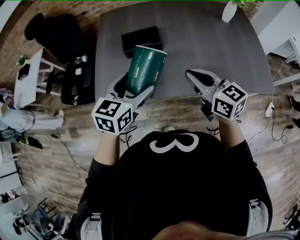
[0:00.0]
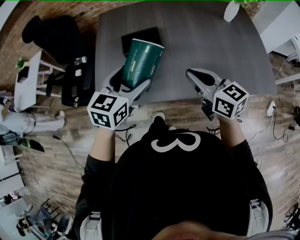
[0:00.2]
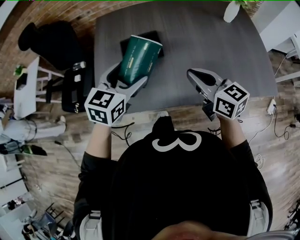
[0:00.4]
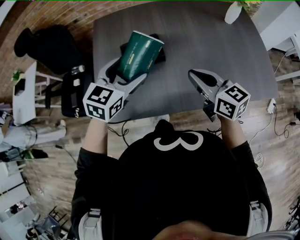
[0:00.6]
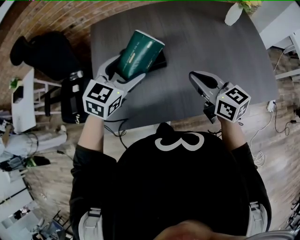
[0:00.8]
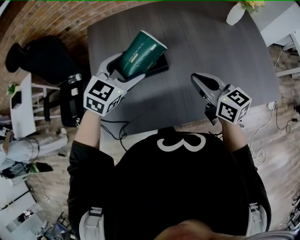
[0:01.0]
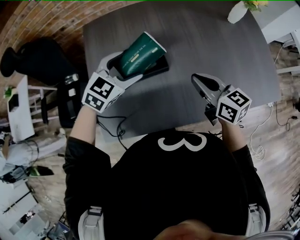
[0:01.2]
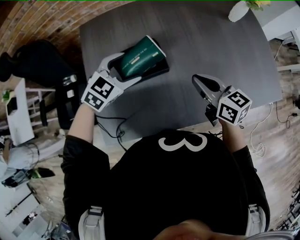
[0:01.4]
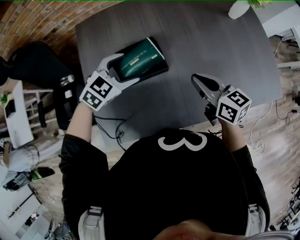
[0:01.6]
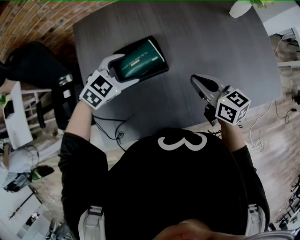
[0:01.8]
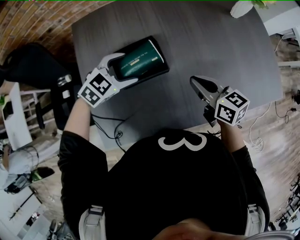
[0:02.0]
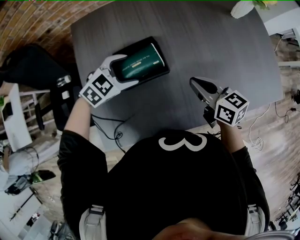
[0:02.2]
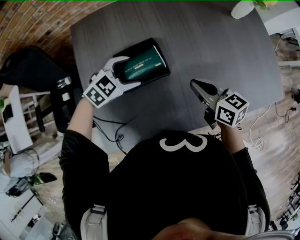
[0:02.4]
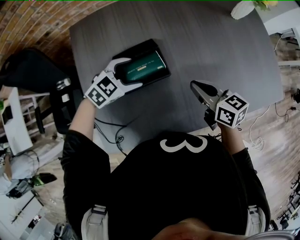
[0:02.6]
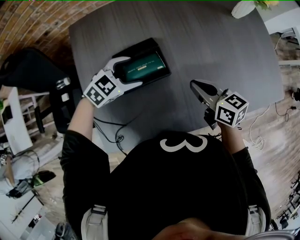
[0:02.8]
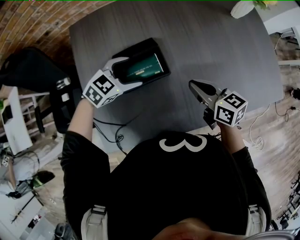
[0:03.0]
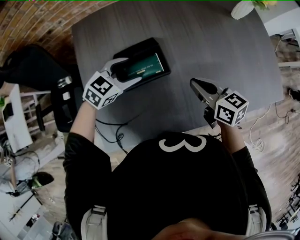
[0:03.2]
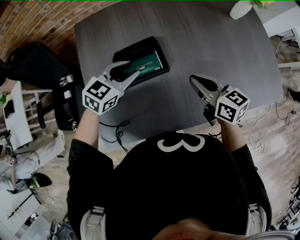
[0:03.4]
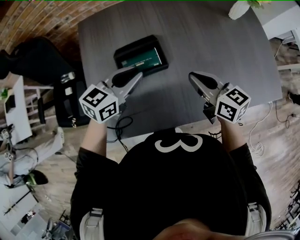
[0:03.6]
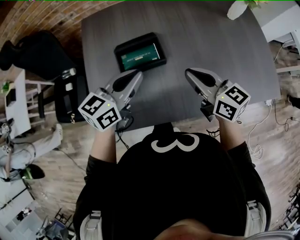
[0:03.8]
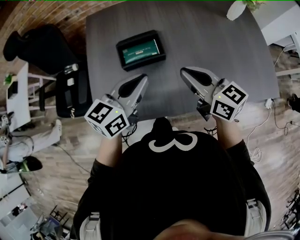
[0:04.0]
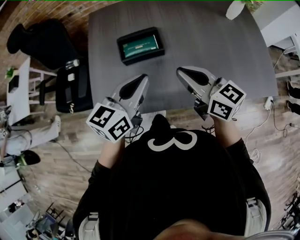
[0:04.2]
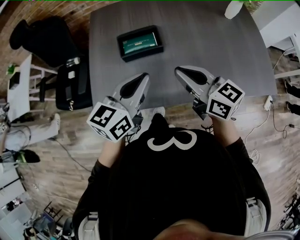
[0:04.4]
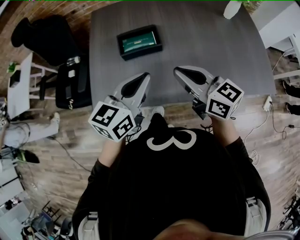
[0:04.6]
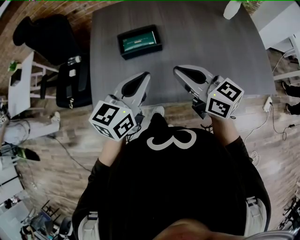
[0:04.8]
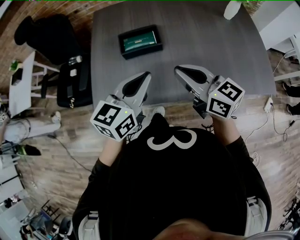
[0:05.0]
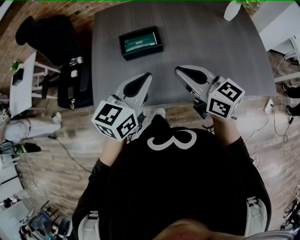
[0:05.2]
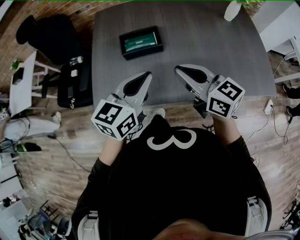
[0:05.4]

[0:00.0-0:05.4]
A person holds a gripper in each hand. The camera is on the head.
0:00.0 to 0:01.4: The left gripper is displaced forward by about 25 cm, and swivels approximately 40 degrees. The right gripper is displaced forward by roughly 15 cm.
0:01.4 to 0:02.8: The two grippers go some 5 cm downward.
0:02.8 to 0:04.0: The right gripper travels upward and backward by approximately 15 cm. Meanwhile the left gripper is displaced upward and backward by some 25 cm, angles its fingers upward, by some 30 degrees, and closes up.
0:04.0 to 0:05.4: The grippers both shift backward by some 10 cm.

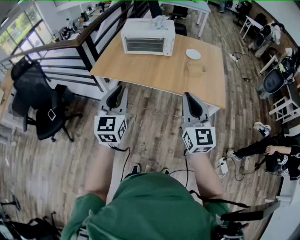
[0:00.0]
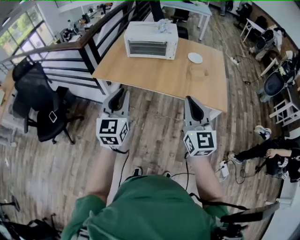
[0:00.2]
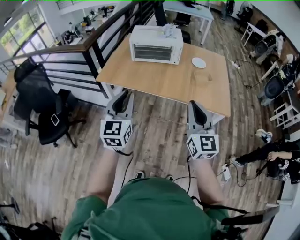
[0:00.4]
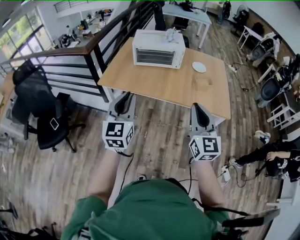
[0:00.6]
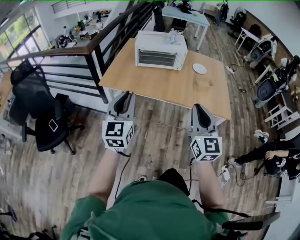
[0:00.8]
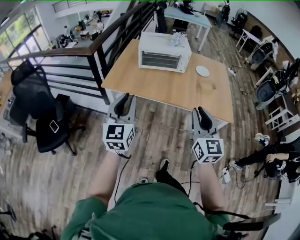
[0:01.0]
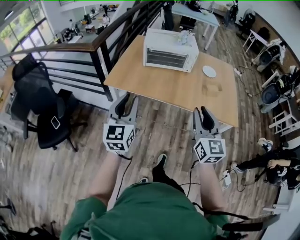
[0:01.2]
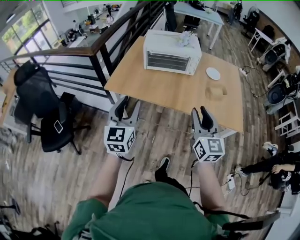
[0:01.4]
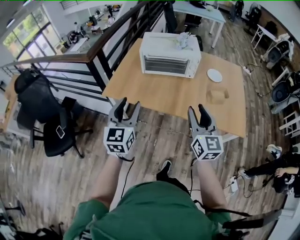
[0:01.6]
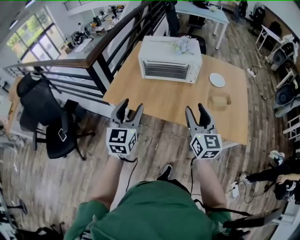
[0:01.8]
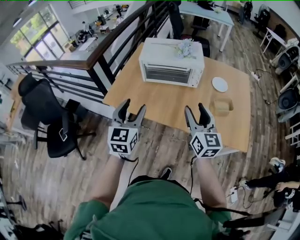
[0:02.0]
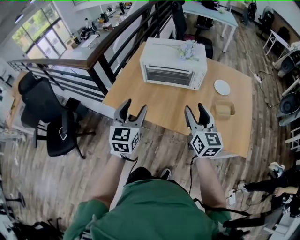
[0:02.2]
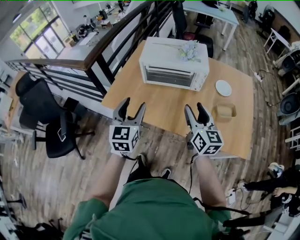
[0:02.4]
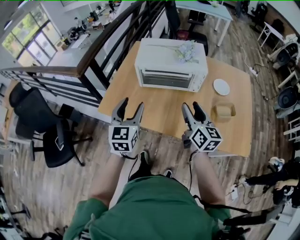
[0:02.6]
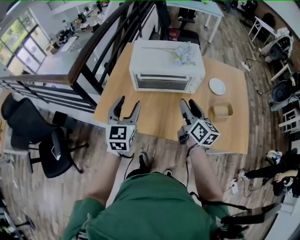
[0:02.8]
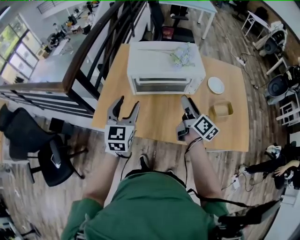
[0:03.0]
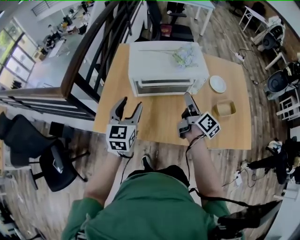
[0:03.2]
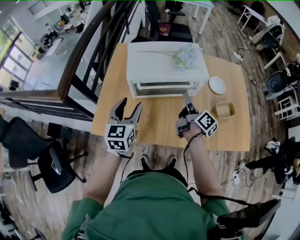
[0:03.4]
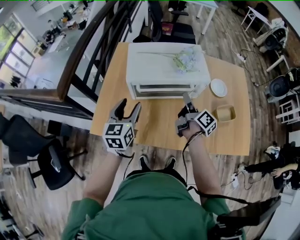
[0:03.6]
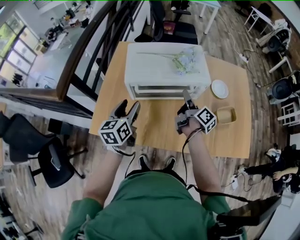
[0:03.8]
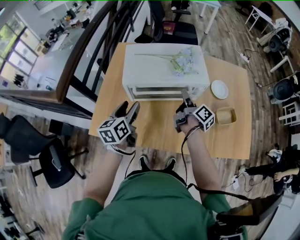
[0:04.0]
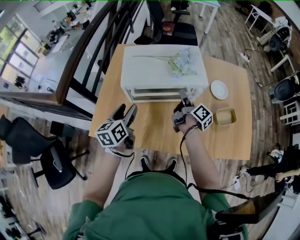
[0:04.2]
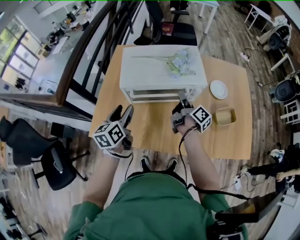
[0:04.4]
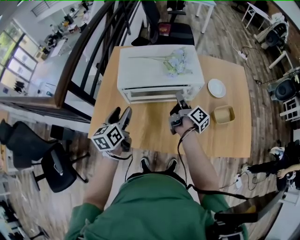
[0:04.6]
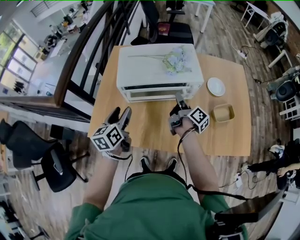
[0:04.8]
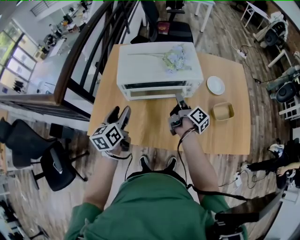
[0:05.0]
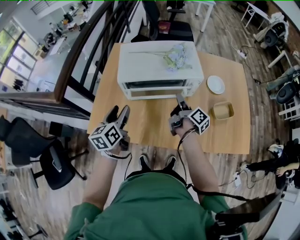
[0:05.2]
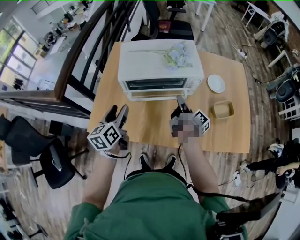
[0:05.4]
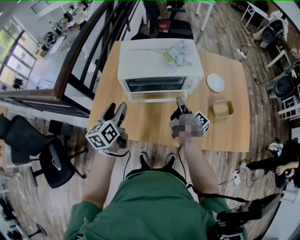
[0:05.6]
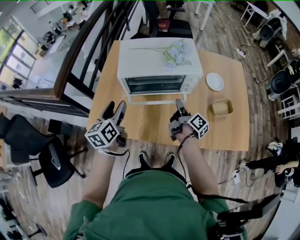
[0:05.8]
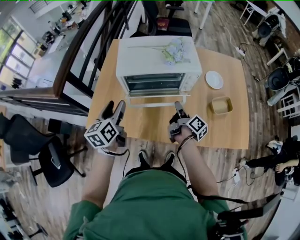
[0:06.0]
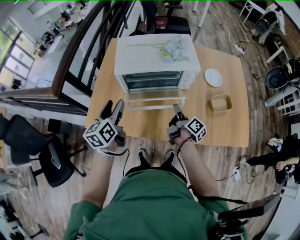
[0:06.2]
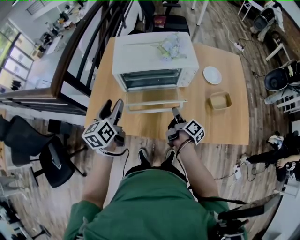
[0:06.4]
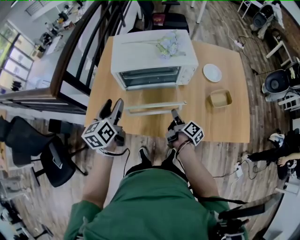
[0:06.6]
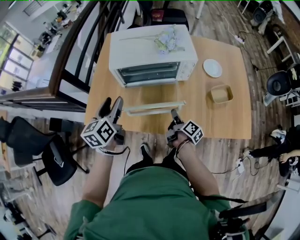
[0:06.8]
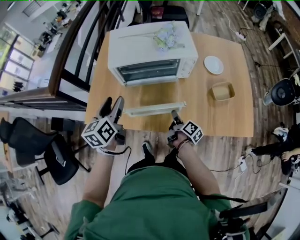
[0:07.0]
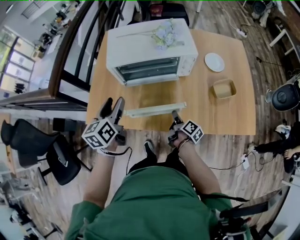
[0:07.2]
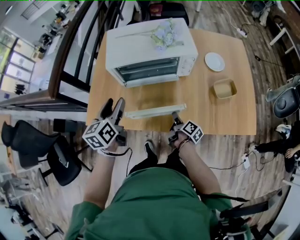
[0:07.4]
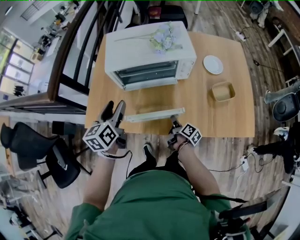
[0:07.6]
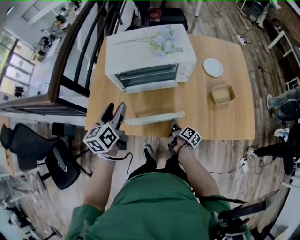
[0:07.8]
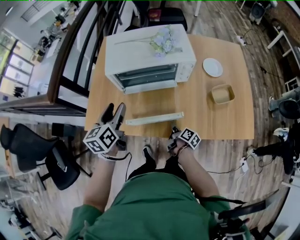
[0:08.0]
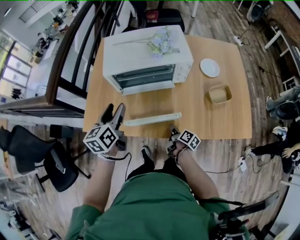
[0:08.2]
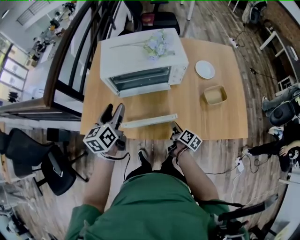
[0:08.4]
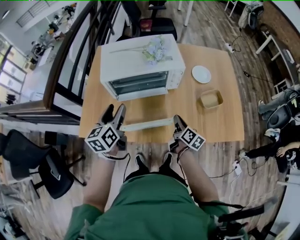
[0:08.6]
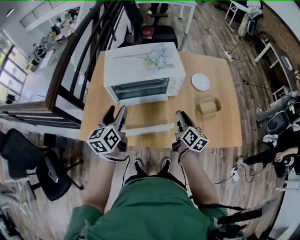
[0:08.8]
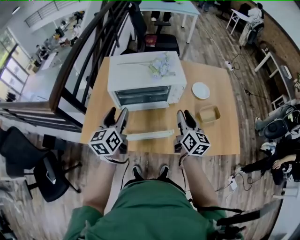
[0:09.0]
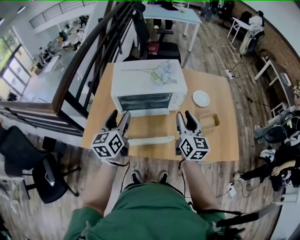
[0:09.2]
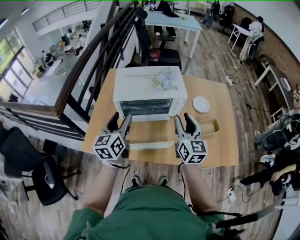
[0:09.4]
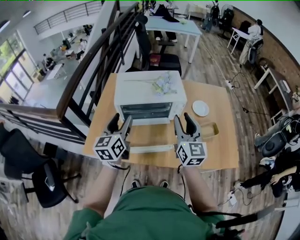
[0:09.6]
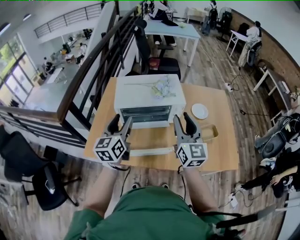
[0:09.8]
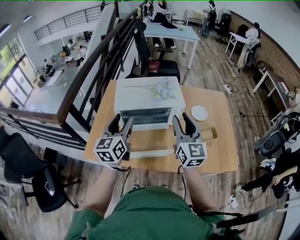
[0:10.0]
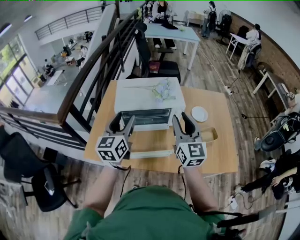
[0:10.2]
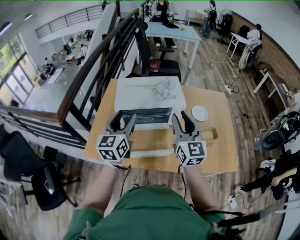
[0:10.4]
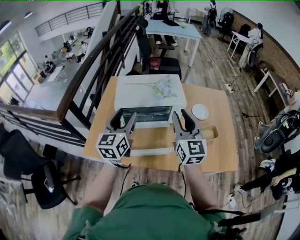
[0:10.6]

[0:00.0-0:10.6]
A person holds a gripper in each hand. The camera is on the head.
0:00.0 to 0:01.6: The grippers both shift forward and to the left by about 20 cm. The left gripper opens up, while the right gripper opens.
0:01.6 to 0:03.0: Both grippers move forward, approximately 30 cm. The right gripper rolls clockwise, seen from behind, by about 50 degrees.
0:03.0 to 0:04.6: The two grippers go roughly 10 cm forward and downward. The left gripper swivels roughly 40 degrees. Meanwhile the right gripper rotates about 30 degrees, and closes.
0:04.6 to 0:06.0: The right gripper moves backward, about 10 cm.
0:06.0 to 0:07.6: The right gripper moves downward and backward, some 20 cm.
0:07.6 to 0:09.0: The right gripper is displaced upward by approximately 25 cm, and rotates around the line of its fingers by some 50 degrees, counterclockwise from behind. Meanwhile the left gripper shifts about 5 cm upward.
0:09.0 to 0:10.6: The left gripper goes approximately 10 cm upward. The right gripper goes roughly 15 cm upward, and changes its angle by about 30 degrees.

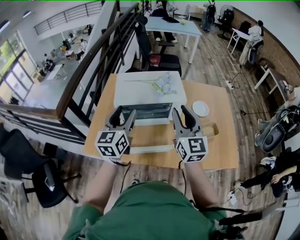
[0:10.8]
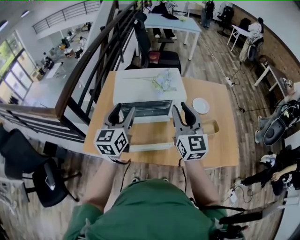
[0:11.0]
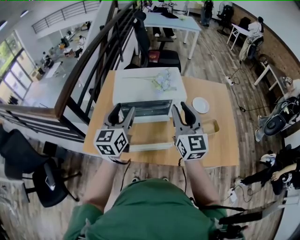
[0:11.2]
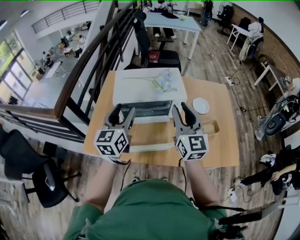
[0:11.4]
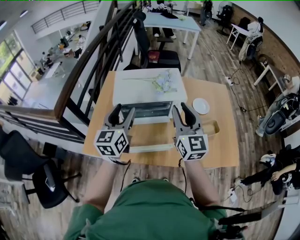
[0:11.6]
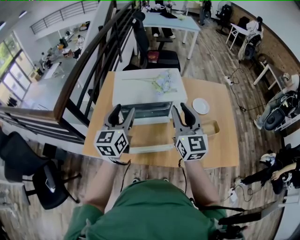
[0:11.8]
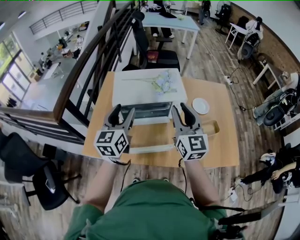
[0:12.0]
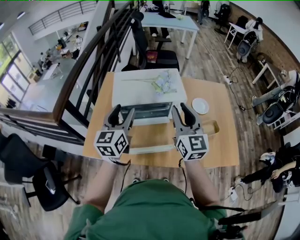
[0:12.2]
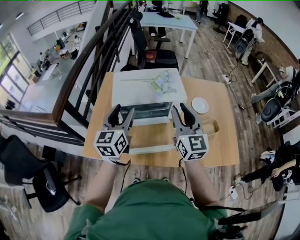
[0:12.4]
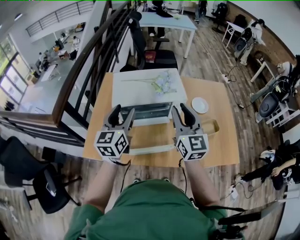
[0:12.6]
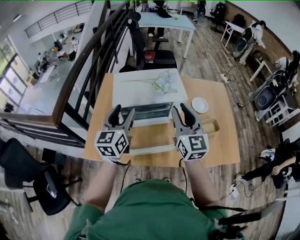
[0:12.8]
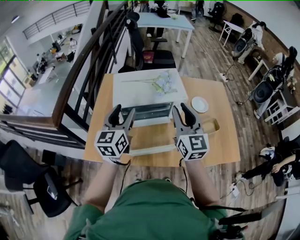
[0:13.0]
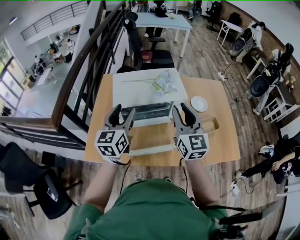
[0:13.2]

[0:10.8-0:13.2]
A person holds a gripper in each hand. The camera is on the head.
0:10.8 to 0:13.2: There are only small adjustments of the grippers.

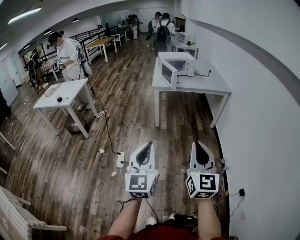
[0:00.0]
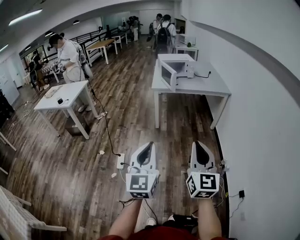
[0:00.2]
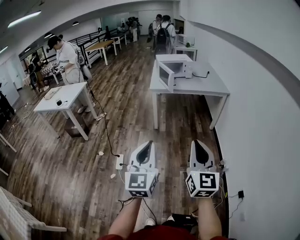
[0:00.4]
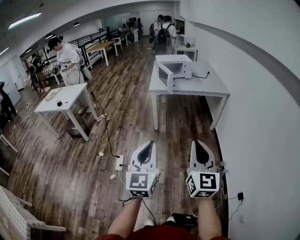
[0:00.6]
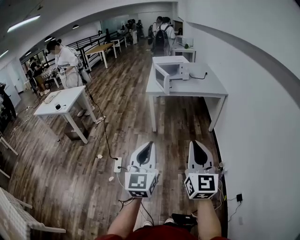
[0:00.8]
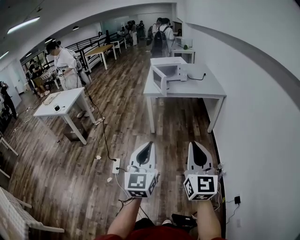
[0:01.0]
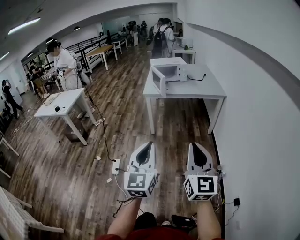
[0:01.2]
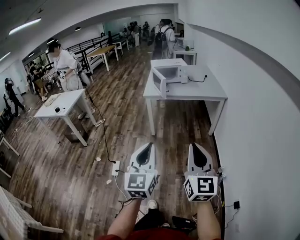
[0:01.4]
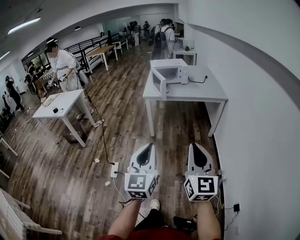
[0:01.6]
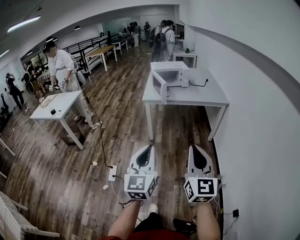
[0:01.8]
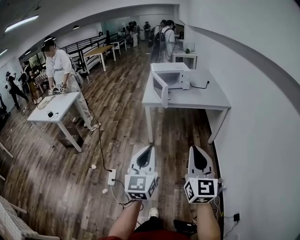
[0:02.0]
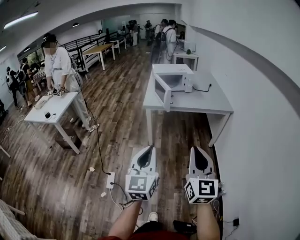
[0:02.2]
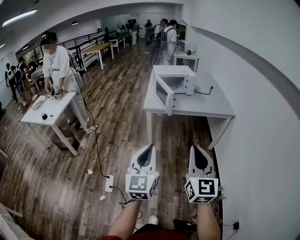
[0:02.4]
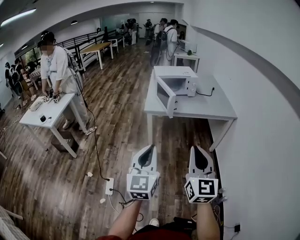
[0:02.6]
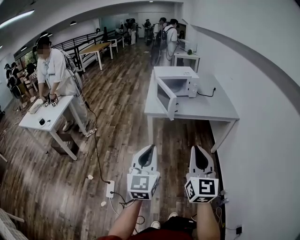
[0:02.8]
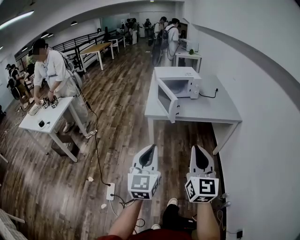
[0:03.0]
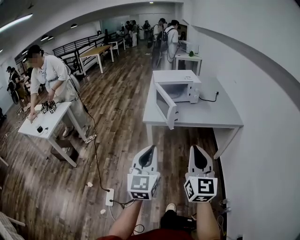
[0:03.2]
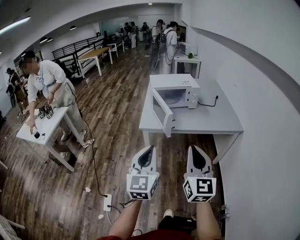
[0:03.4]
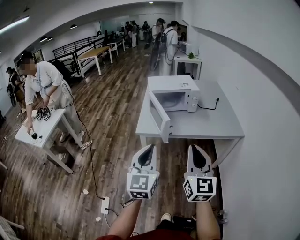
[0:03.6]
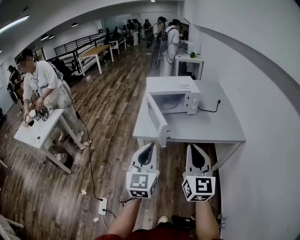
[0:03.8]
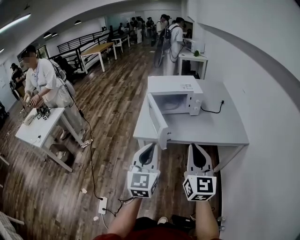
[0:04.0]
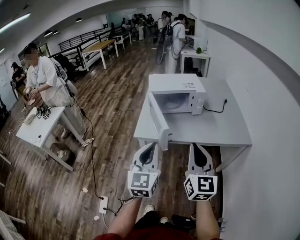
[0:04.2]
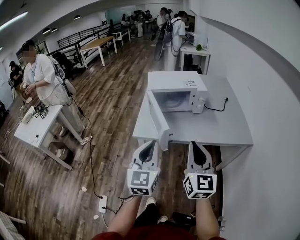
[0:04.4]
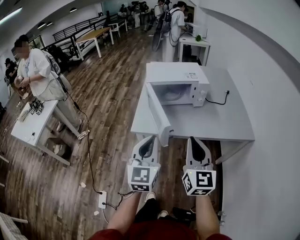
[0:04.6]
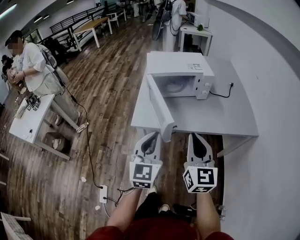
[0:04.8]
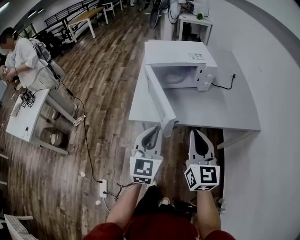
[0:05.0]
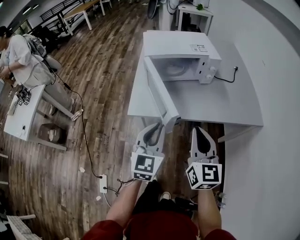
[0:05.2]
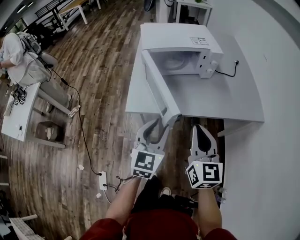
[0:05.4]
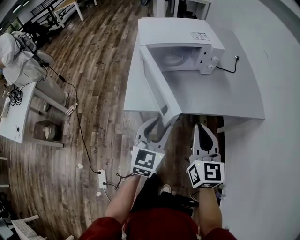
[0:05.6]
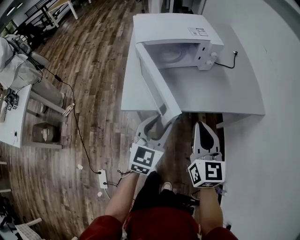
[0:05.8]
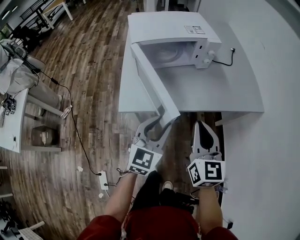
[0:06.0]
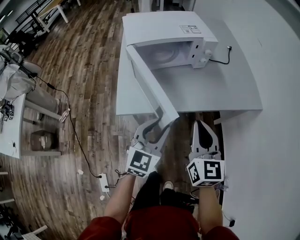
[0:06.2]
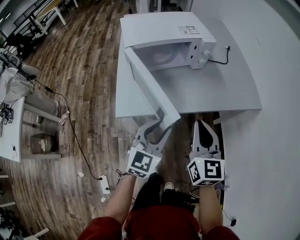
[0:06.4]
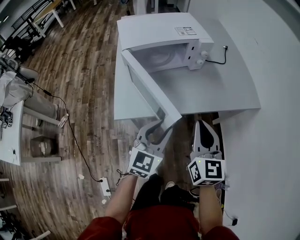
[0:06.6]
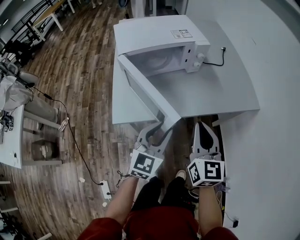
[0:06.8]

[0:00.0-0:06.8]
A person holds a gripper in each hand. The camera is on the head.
0:00.0 to 0:01.4: The two grippers go about 15 cm to the right and forward.
0:01.4 to 0:02.8: The two grippers go roughly 30 cm forward.
0:02.8 to 0:04.0: Both grippers move forward, roughly 30 cm.
0:04.0 to 0:05.4: Both grippers travel together forward and downward, about 25 cm. The left gripper opens.
0:05.4 to 0:06.8: The two grippers go some 5 cm forward.
